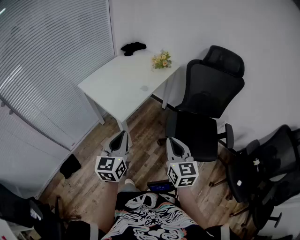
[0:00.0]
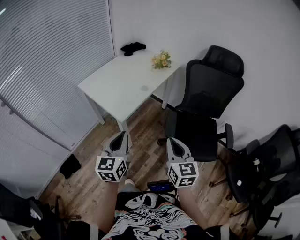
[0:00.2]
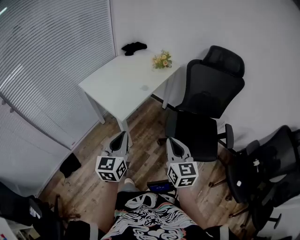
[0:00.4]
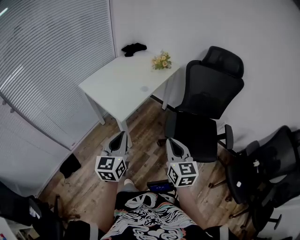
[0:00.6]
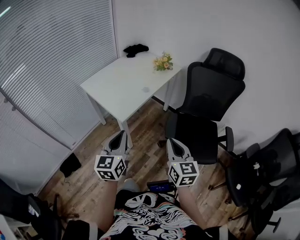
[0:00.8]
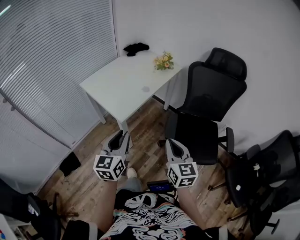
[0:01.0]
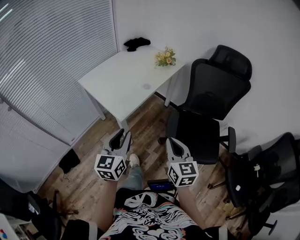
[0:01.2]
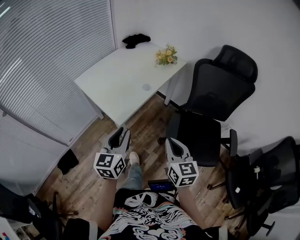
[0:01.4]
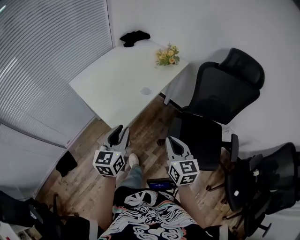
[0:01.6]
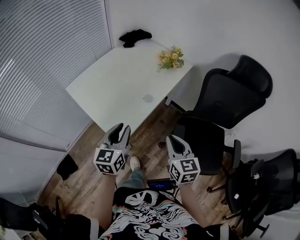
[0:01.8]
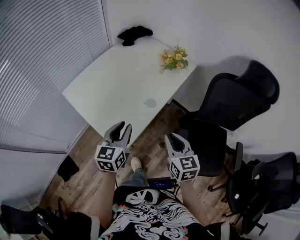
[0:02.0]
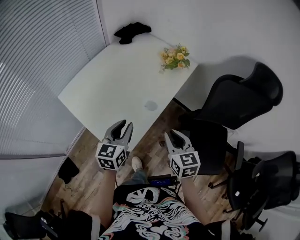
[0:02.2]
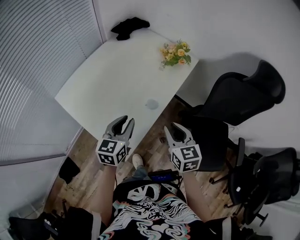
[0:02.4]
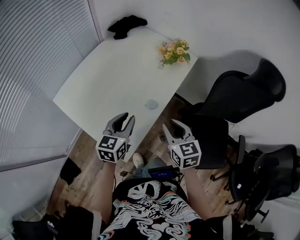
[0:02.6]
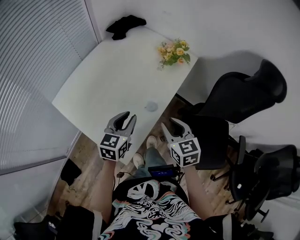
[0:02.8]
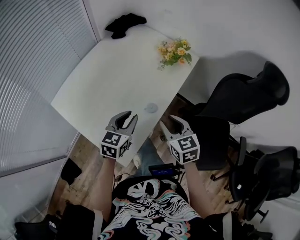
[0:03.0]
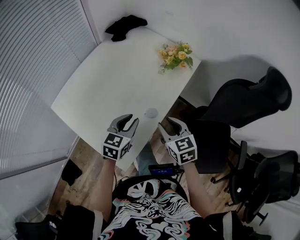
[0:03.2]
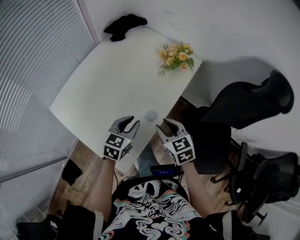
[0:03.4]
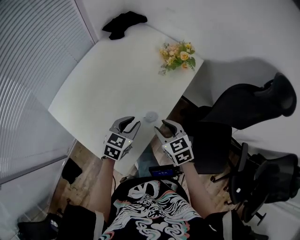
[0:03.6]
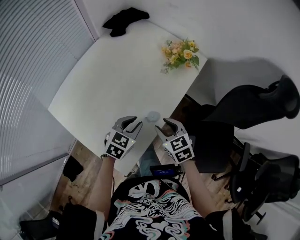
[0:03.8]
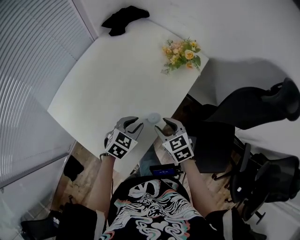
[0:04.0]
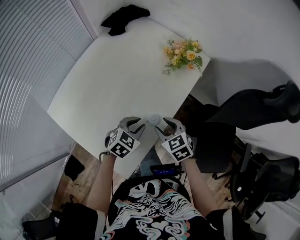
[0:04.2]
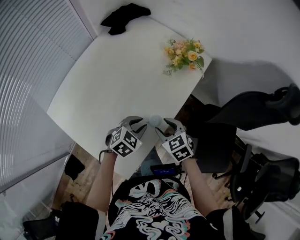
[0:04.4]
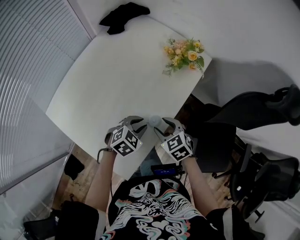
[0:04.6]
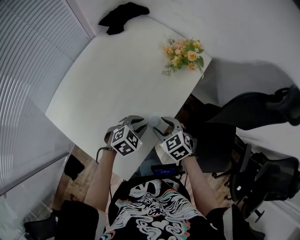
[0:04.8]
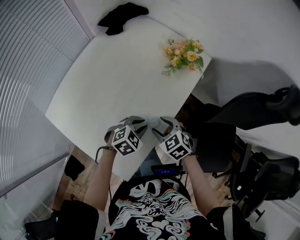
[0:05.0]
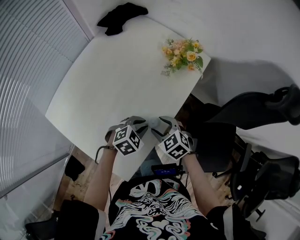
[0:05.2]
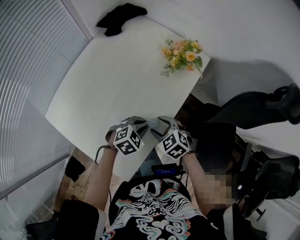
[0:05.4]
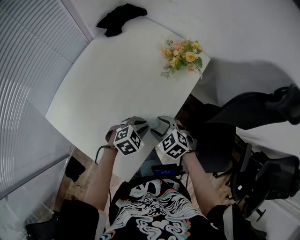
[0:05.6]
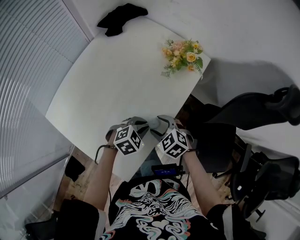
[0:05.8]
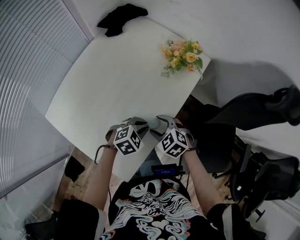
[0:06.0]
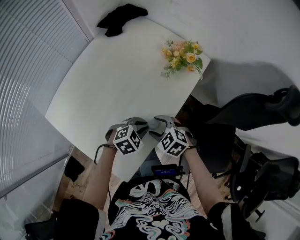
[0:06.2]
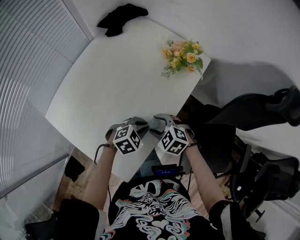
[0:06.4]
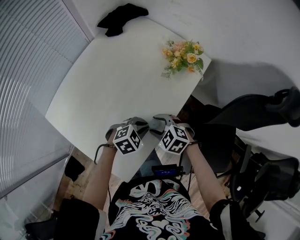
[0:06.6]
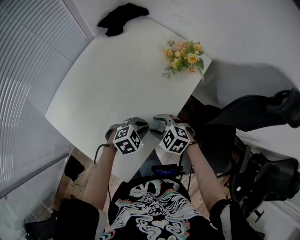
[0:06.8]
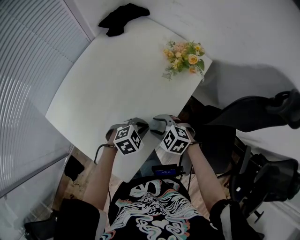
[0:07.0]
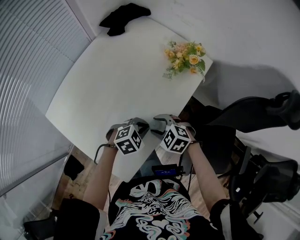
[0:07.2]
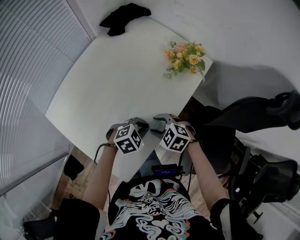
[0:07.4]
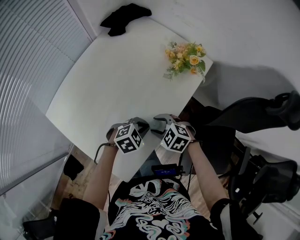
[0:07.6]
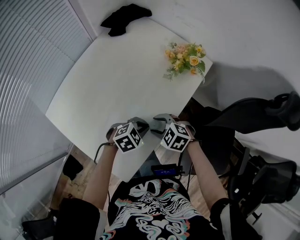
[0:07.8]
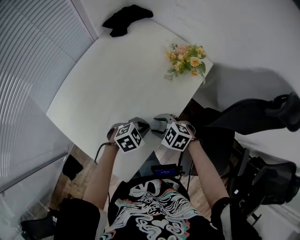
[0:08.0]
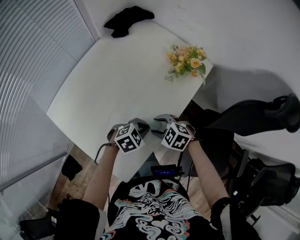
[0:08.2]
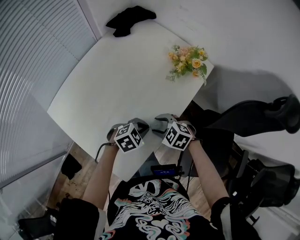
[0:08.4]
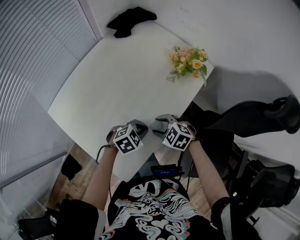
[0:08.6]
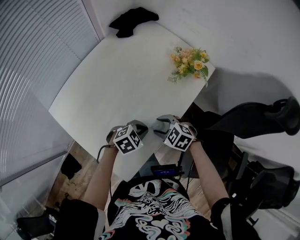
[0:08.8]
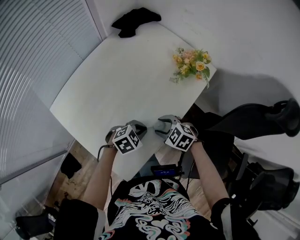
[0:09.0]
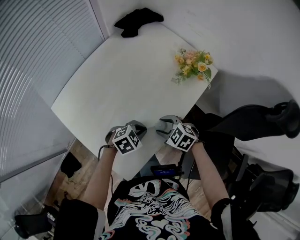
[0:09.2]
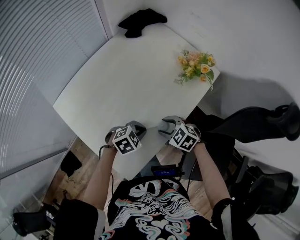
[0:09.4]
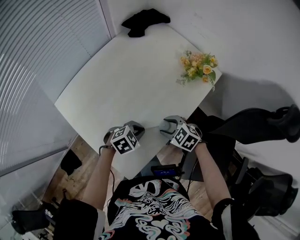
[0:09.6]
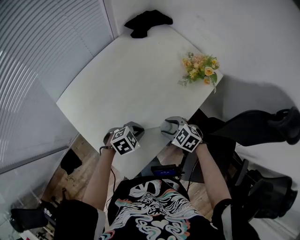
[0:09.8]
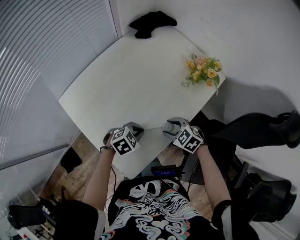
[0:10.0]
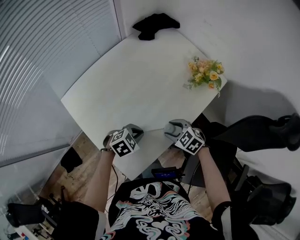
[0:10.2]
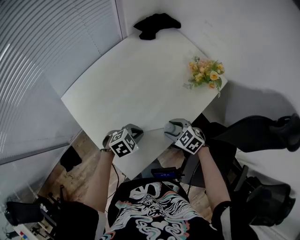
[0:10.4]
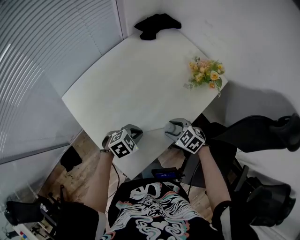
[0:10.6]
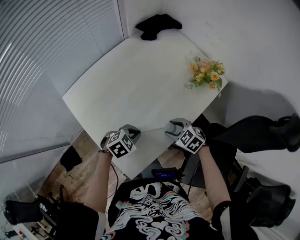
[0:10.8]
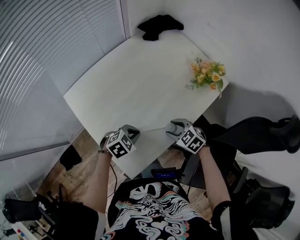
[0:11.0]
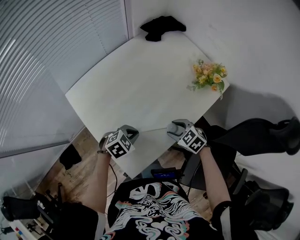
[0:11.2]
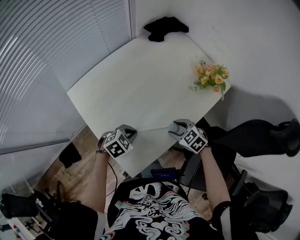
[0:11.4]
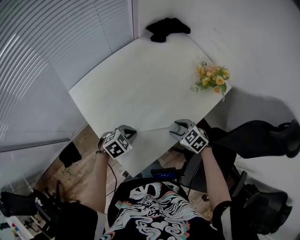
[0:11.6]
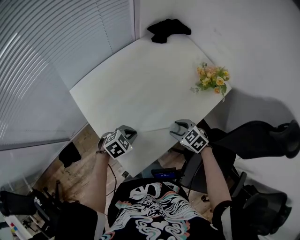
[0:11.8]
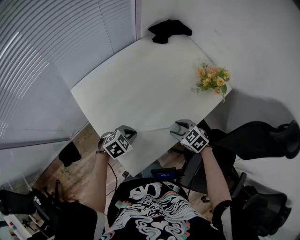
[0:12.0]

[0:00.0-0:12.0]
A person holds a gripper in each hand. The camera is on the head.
0.0 to 1.6 s: The left gripper heads forward, covering about 15 cm, and opens its fingers. The right gripper is displaced forward and downward by about 15 cm.
1.6 to 3.0 s: The two grippers go approximately 25 cm forward. The left gripper swivels approximately 20 degrees; the right gripper opens.
3.0 to 4.4 s: The right gripper shifts approximately 10 cm downward and forward, and swivels approximately 20 degrees, while the left gripper is displaced downward by some 10 cm, and turns by about 40 degrees.
4.4 to 6.0 s: There are only small adjustments of the grippers.
6.0 to 9.0 s: There are only small adjustments of the grippers.
9.0 to 10.4 s: The left gripper changes place by some 5 cm.
10.4 to 12.0 s: The left gripper shifts by approximately 5 cm.

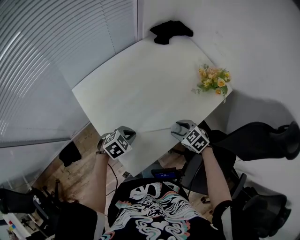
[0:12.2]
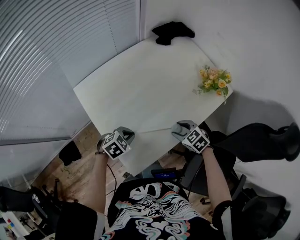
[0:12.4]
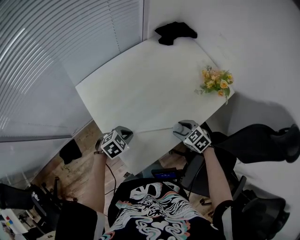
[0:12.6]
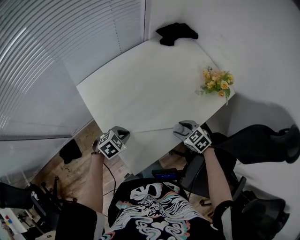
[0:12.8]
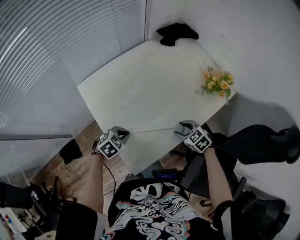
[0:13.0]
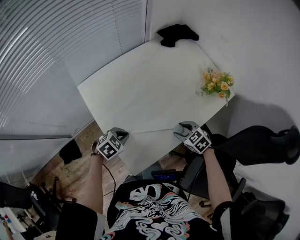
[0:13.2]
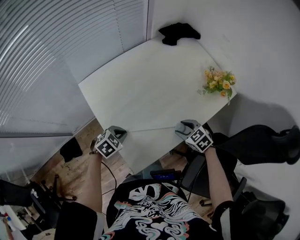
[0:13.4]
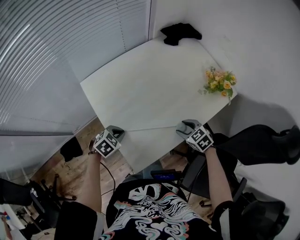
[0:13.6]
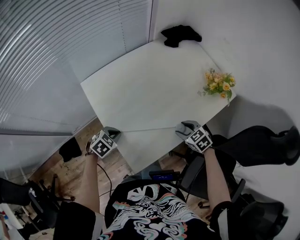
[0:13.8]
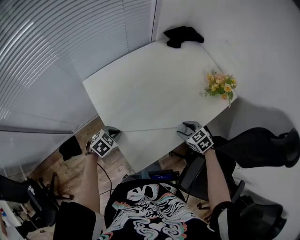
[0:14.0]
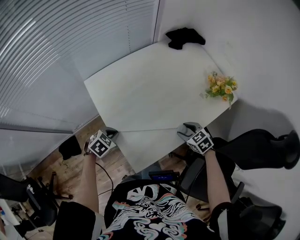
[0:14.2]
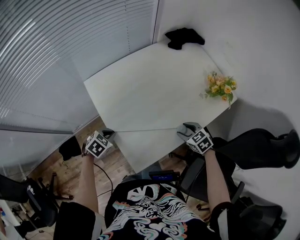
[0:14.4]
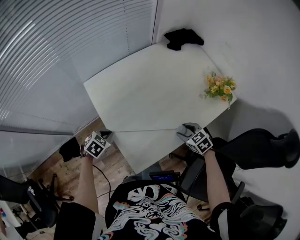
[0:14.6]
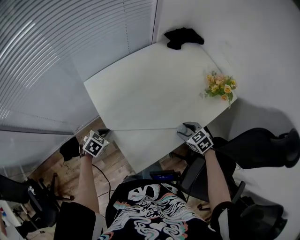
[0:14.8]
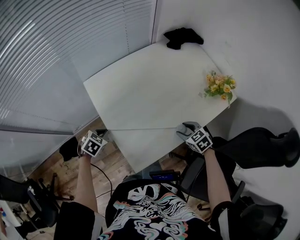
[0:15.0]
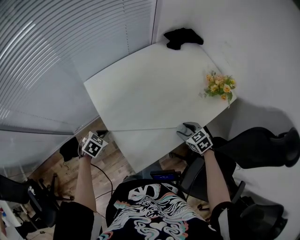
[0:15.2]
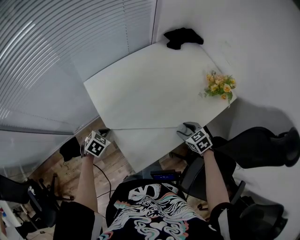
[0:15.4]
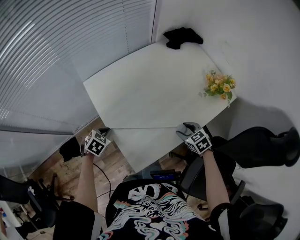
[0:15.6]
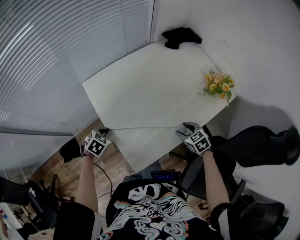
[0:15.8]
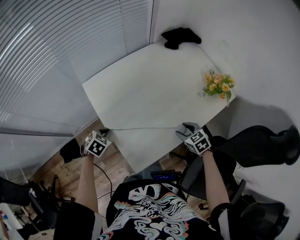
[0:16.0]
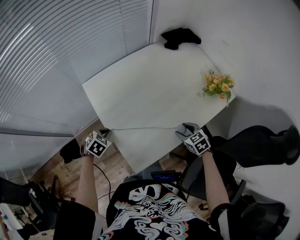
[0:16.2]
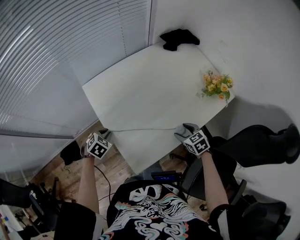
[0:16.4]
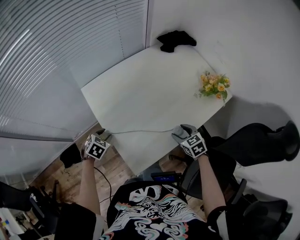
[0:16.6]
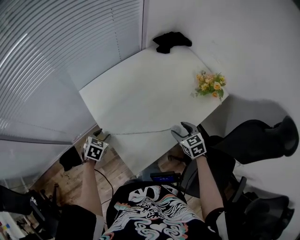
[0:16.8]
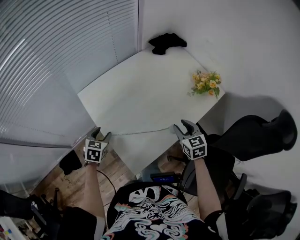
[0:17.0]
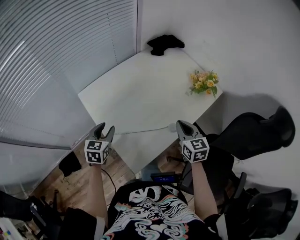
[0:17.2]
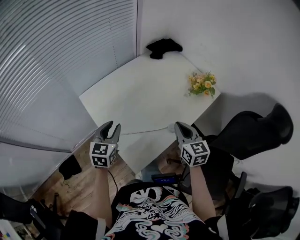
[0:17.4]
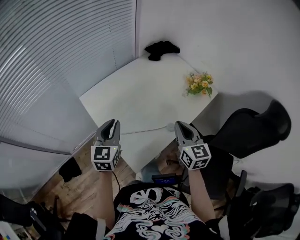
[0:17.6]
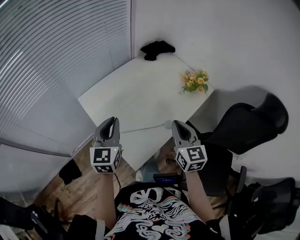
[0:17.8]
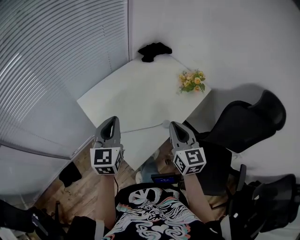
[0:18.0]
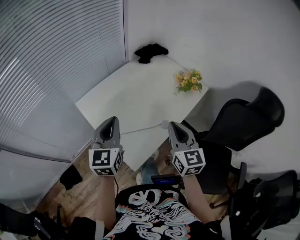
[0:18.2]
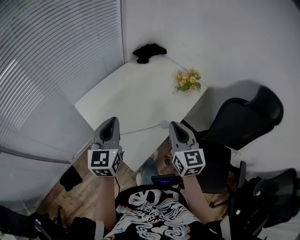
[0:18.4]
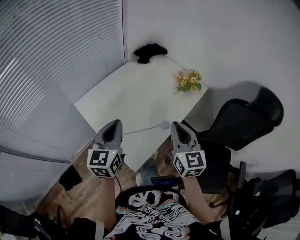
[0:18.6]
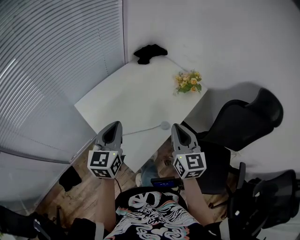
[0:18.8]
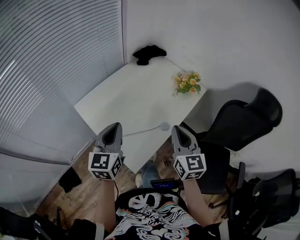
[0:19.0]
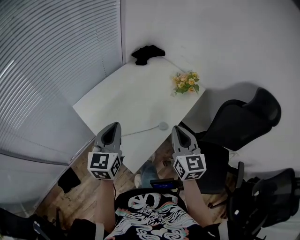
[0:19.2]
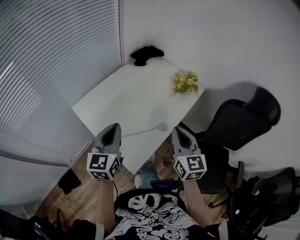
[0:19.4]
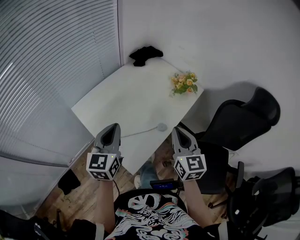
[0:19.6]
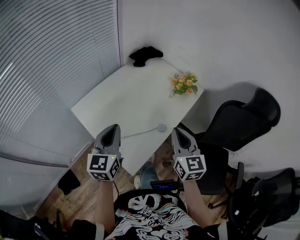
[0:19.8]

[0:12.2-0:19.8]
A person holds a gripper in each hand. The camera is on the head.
12.2 to 13.8 s: The left gripper shifts roughly 10 cm to the left.
13.8 to 15.2 s: The left gripper is displaced to the left by about 5 cm.
15.2 to 16.8 s: The left gripper opens up.
16.8 to 18.2 s: The two grippers go about 25 cm upward. The left gripper tilts its fingers some 50 degrees upward, and closes, while the right gripper tilts its fingers about 30 degrees upward, and closes.
18.2 to 19.8 s: The grippers make only small movements.

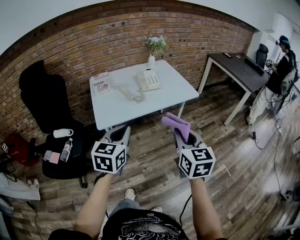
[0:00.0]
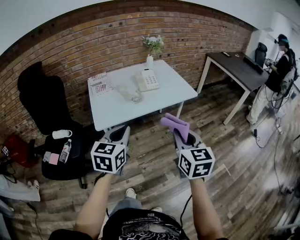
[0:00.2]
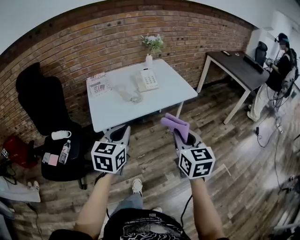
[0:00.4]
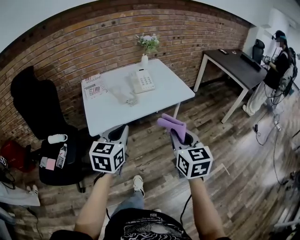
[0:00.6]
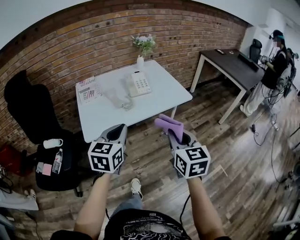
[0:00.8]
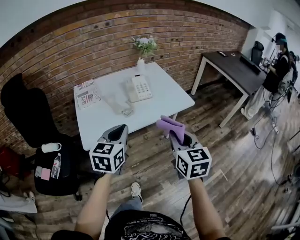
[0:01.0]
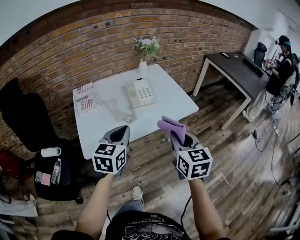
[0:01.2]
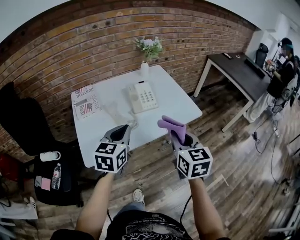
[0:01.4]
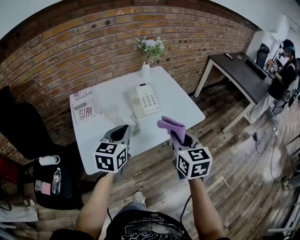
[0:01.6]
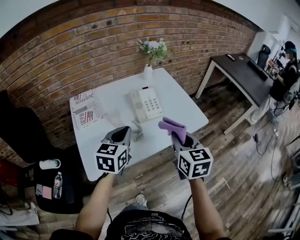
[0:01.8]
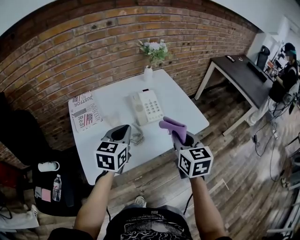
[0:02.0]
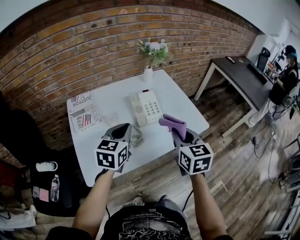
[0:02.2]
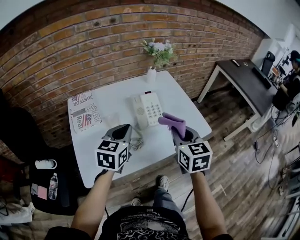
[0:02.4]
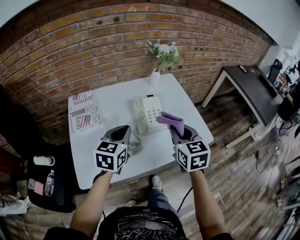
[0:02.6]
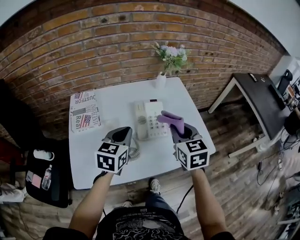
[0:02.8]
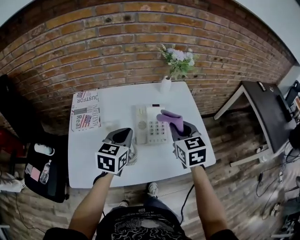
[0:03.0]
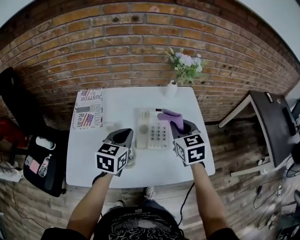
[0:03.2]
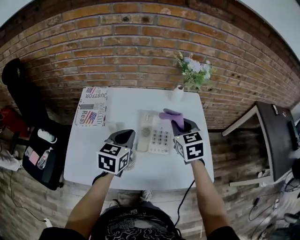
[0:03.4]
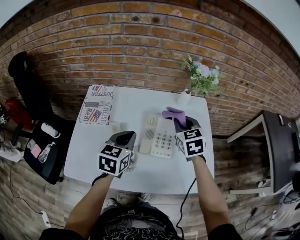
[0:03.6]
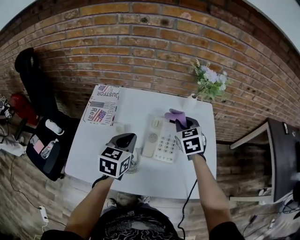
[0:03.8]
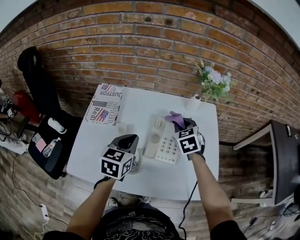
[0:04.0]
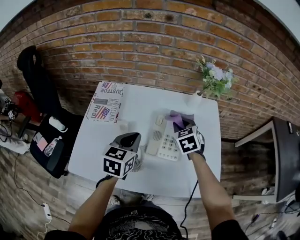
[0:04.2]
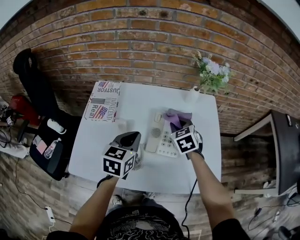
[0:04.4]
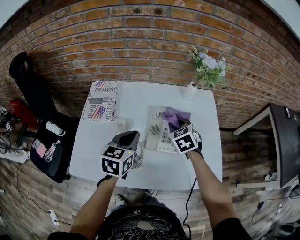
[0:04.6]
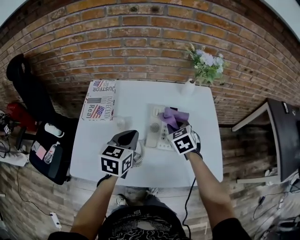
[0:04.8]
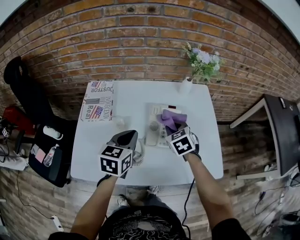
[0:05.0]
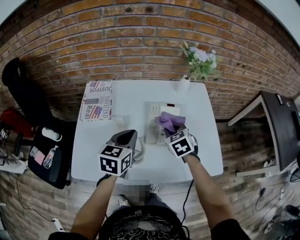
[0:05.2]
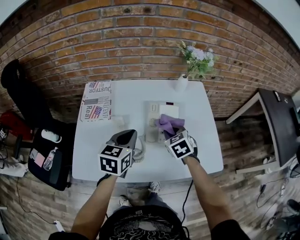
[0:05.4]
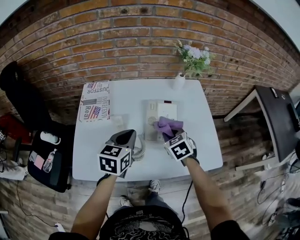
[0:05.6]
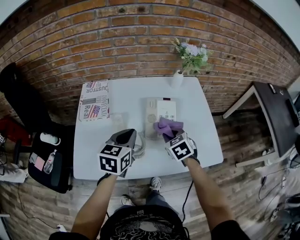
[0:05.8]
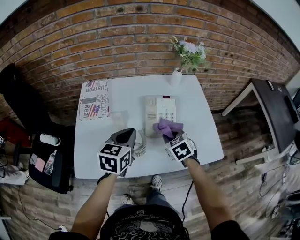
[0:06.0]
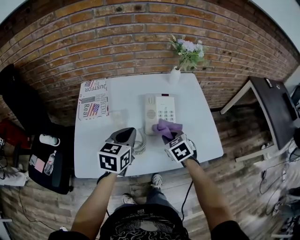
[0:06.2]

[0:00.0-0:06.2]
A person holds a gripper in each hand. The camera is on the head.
0.0 to 1.6 s: Both grippers travel together forward, about 30 cm.
1.6 to 3.2 s: The left gripper shifts roughly 20 cm forward; the right gripper is displaced forward by about 30 cm, and turns by approximately 30 degrees.
3.2 to 4.6 s: The right gripper shifts about 15 cm downward, forward and to the left, and rotates approximately 20 degrees.
4.6 to 6.2 s: The left gripper shifts some 5 cm backward. The right gripper shifts roughly 15 cm backward.
